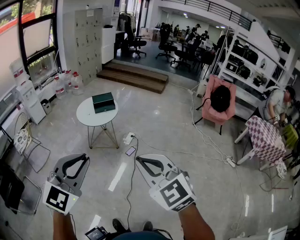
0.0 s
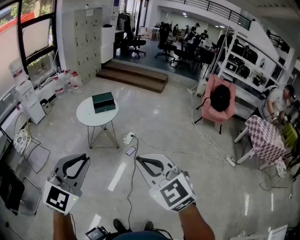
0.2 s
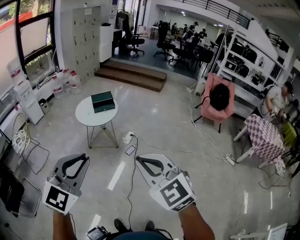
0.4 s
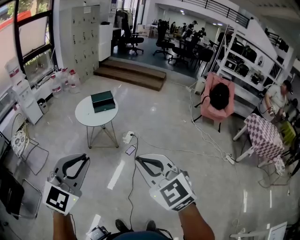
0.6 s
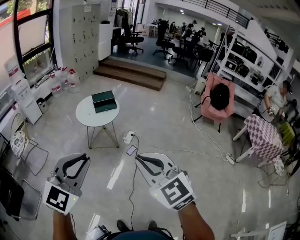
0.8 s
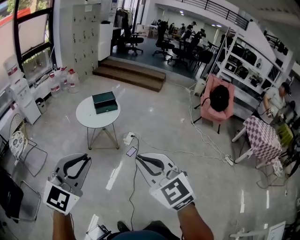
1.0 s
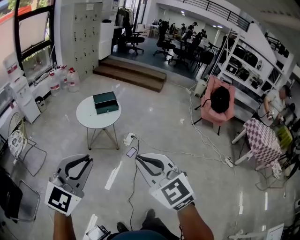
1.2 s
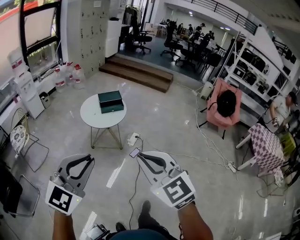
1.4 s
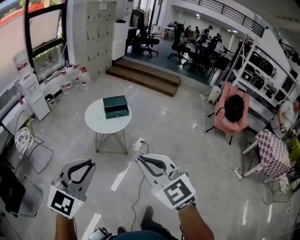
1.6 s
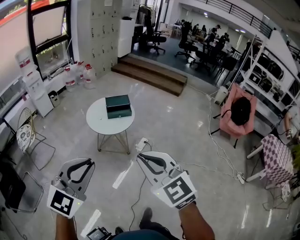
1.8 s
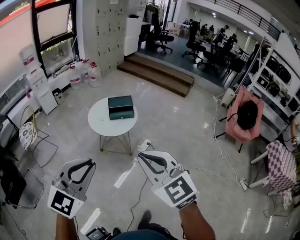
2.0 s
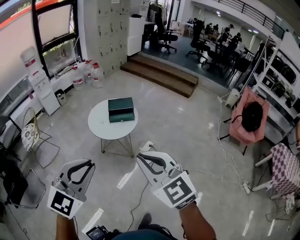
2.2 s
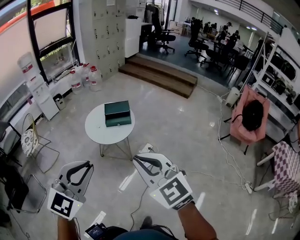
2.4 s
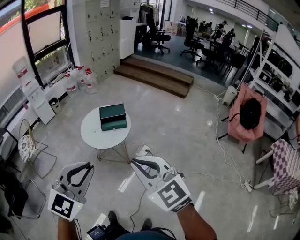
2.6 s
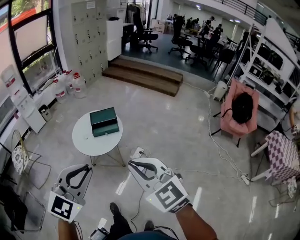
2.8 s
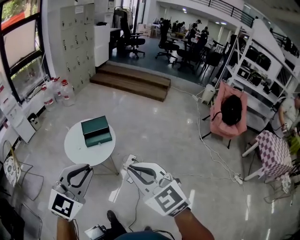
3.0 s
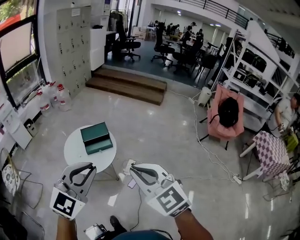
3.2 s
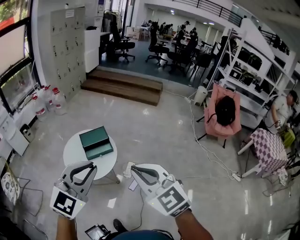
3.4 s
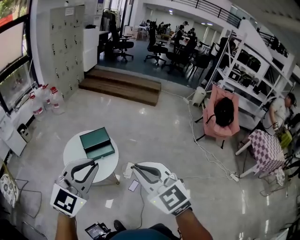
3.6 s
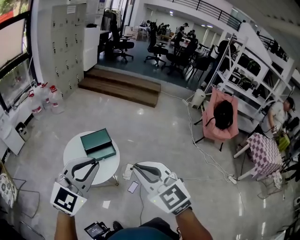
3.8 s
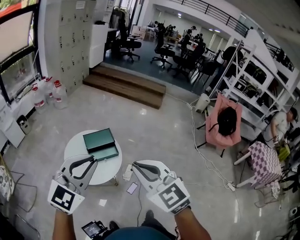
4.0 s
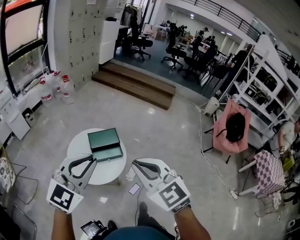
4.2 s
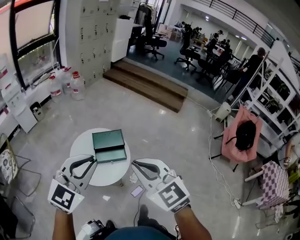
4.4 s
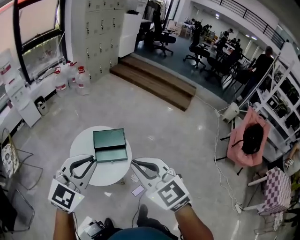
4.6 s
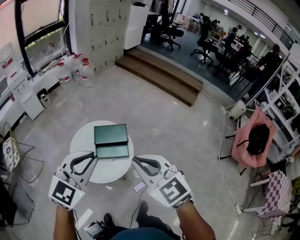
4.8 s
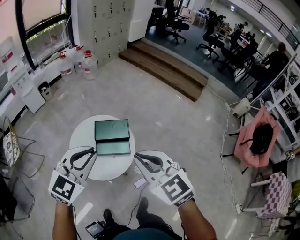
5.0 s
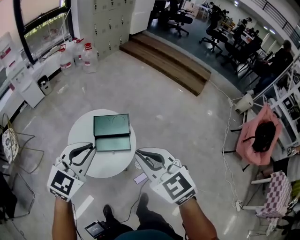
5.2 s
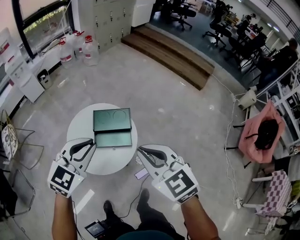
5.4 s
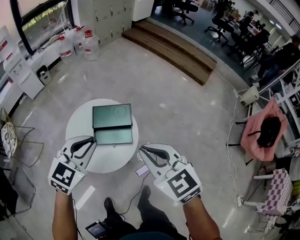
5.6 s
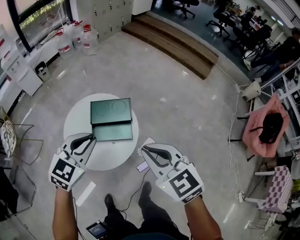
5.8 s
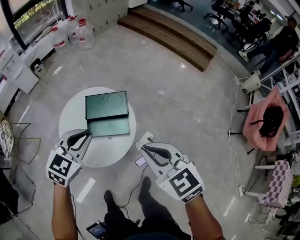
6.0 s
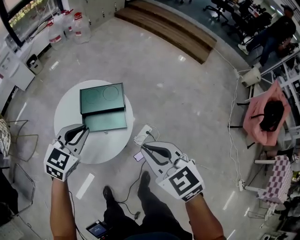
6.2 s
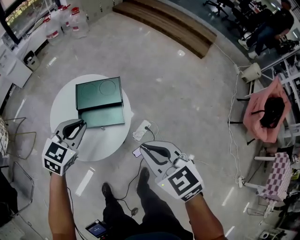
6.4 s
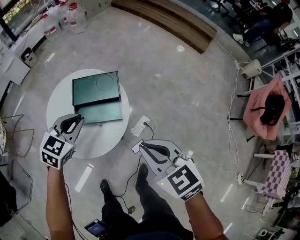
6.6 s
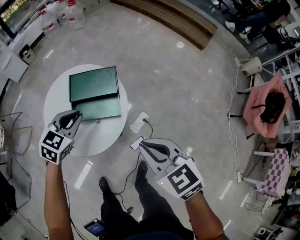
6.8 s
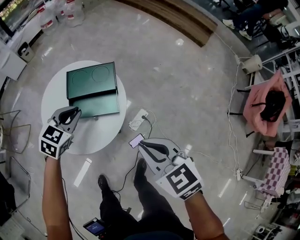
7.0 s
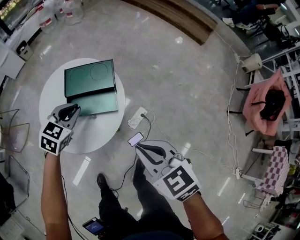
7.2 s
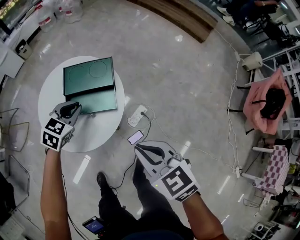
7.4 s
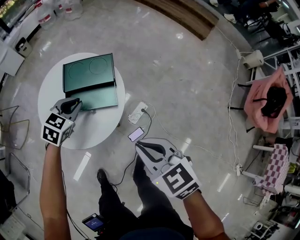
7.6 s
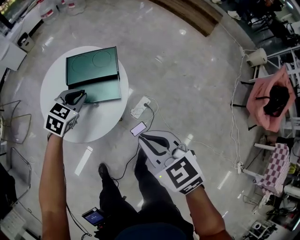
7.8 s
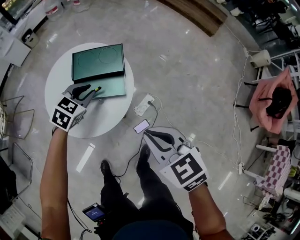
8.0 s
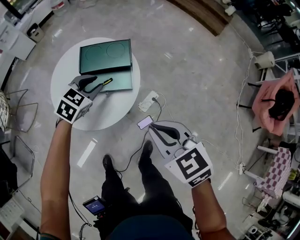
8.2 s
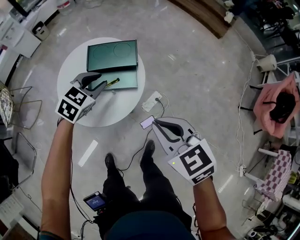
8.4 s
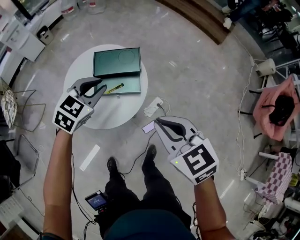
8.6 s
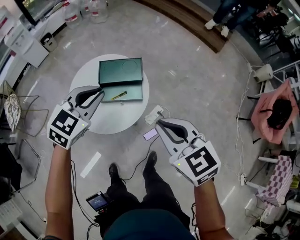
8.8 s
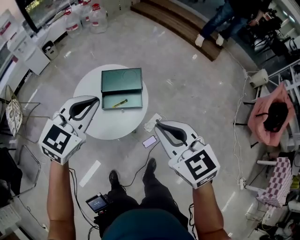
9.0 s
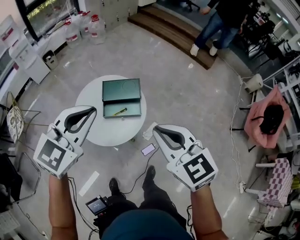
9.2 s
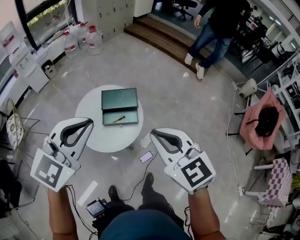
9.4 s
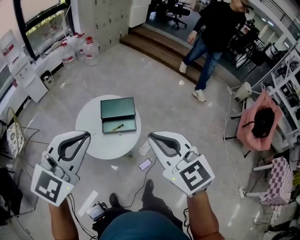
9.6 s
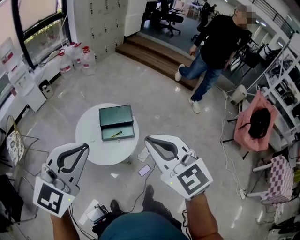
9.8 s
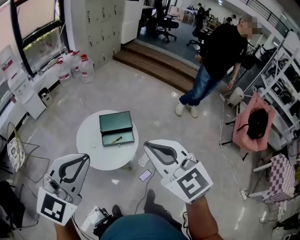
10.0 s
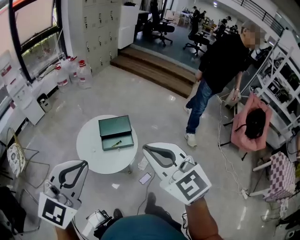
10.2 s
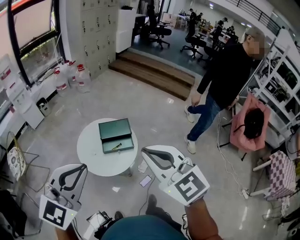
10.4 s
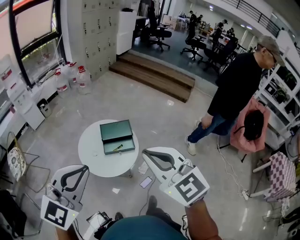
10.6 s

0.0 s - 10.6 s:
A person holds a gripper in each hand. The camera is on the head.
0.0 s - 1.6 s: The two grippers go some 30 cm forward and to the left.
1.6 s - 3.0 s: The two grippers travel together, forward and to the right, roughly 50 cm.
3.0 s - 4.6 s: The two grippers travel together, forward, approximately 50 cm.
4.6 s - 6.0 s: The two grippers go roughly 40 cm downward and forward. The left gripper turns by about 20 degrees.
6.0 s - 7.6 s: Both grippers move downward, approximately 25 cm.
7.6 s - 9.0 s: Both grippers travel together upward, approximately 30 cm. The left gripper rotates approximately 20 degrees.
9.0 s - 10.6 s: The left gripper is displaced backward and upward by some 40 cm; the right gripper heads upward and backward, covering some 35 cm.

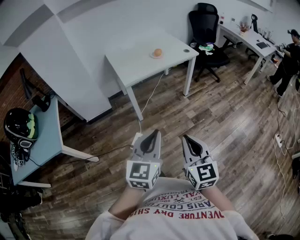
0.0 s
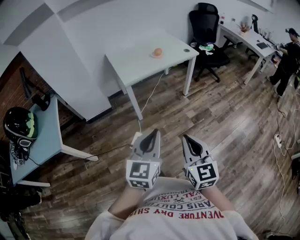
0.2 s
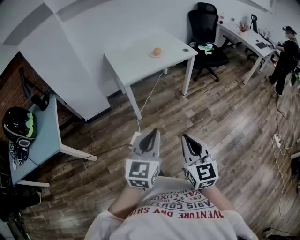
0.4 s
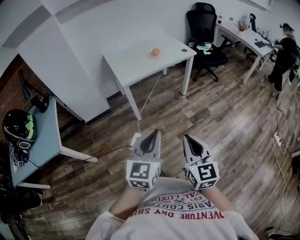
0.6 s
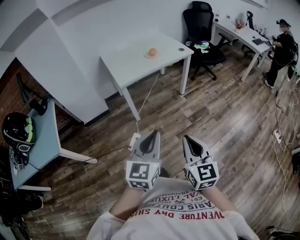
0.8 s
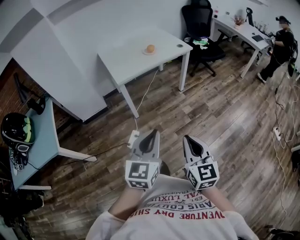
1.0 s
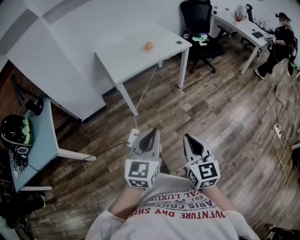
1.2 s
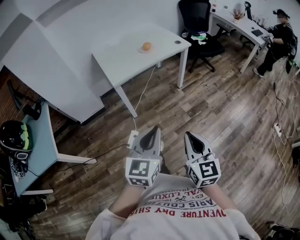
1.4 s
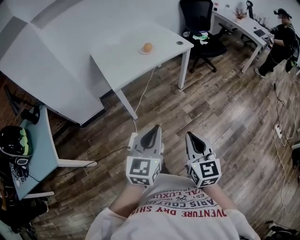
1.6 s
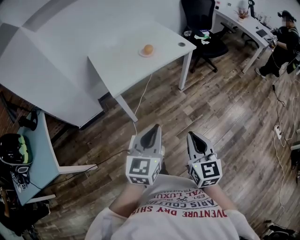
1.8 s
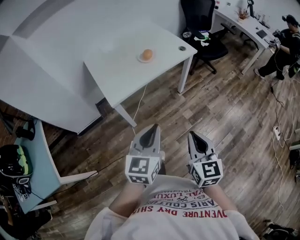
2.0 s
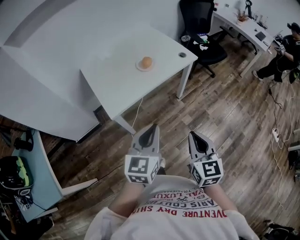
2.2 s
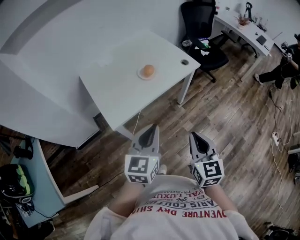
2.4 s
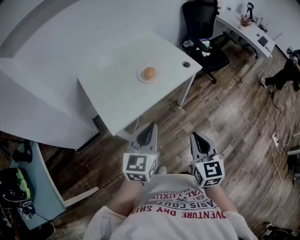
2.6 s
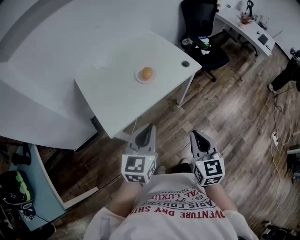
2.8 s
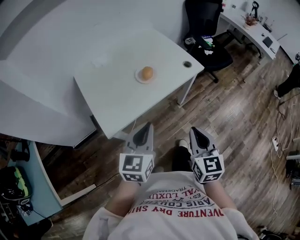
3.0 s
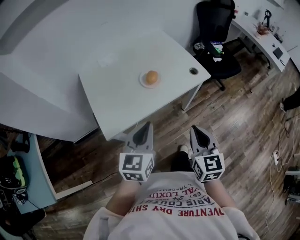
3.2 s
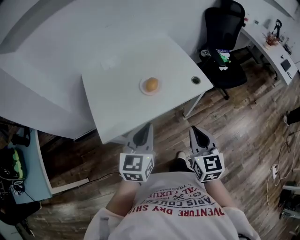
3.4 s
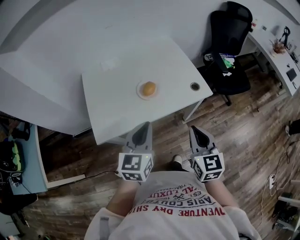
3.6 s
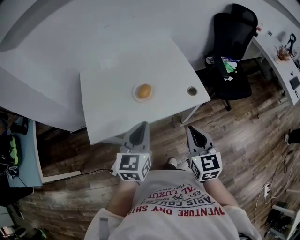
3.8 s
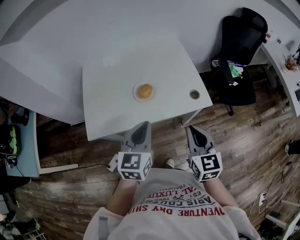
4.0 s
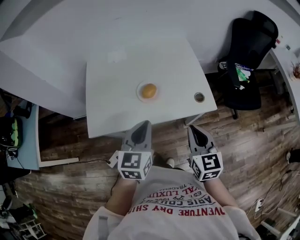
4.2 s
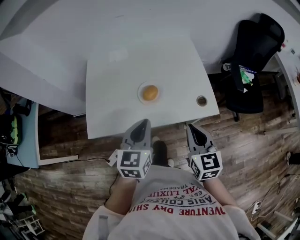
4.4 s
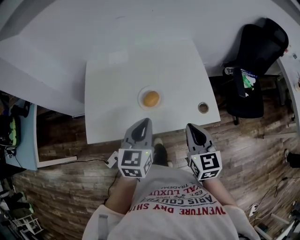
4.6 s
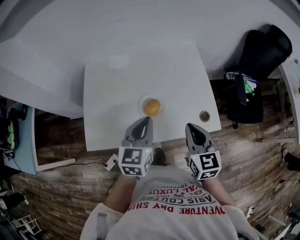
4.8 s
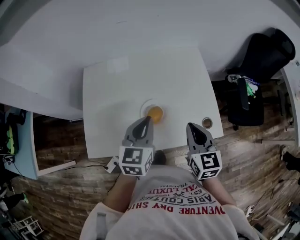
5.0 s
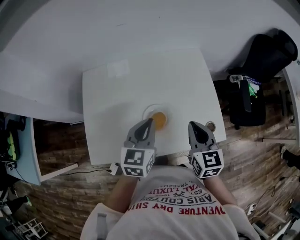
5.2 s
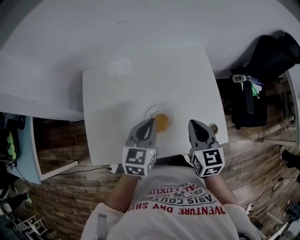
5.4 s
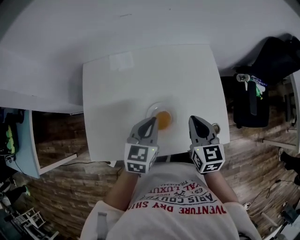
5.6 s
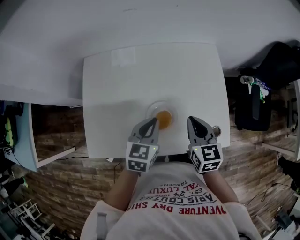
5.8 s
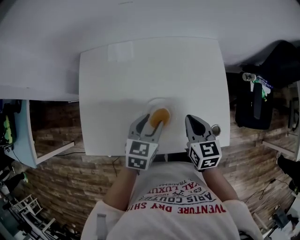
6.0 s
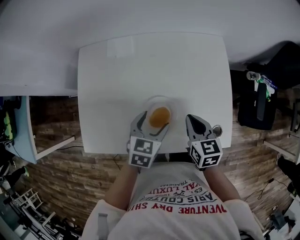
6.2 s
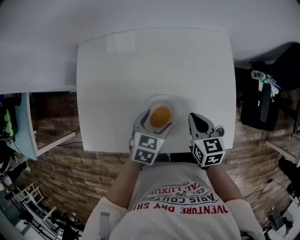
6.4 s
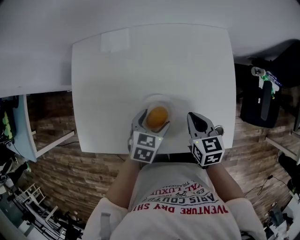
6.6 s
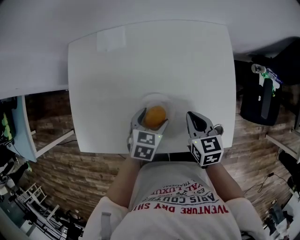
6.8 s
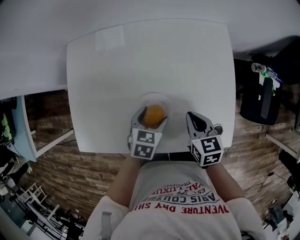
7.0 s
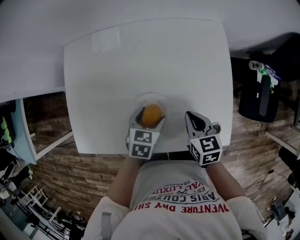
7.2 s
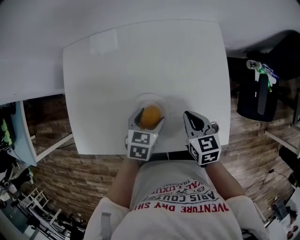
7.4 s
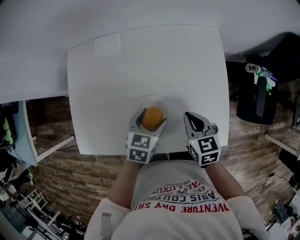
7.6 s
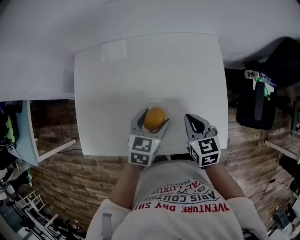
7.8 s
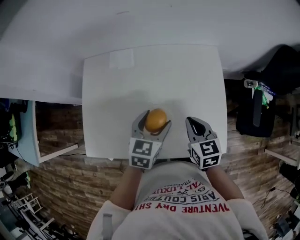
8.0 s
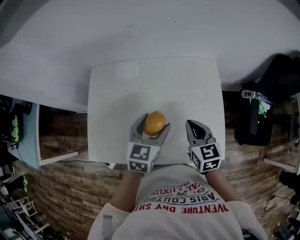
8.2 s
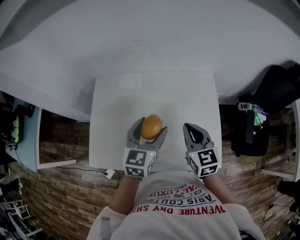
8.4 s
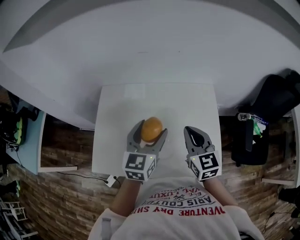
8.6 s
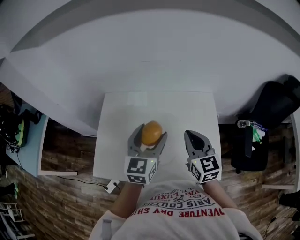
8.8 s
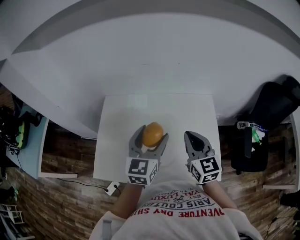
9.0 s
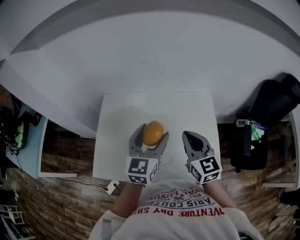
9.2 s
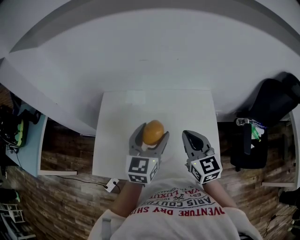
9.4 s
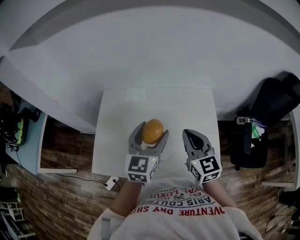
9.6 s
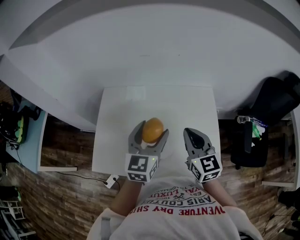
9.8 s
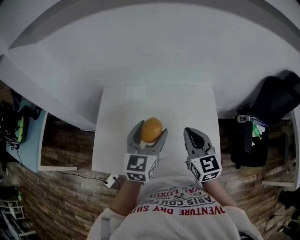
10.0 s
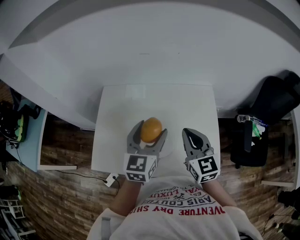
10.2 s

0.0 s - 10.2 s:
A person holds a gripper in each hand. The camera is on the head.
0.0 s - 1.4 s: The grippers both shift forward by about 5 cm.
1.4 s - 3.0 s: Both grippers are carried forward, about 40 cm.
3.0 s - 4.4 s: The left gripper ends up about 25 cm from where it was, and turns by about 30 degrees. Meanwhile the right gripper shifts by about 30 cm, and turns by roughly 30 degrees.
4.4 s - 5.8 s: The left gripper heads forward and downward, covering some 20 cm, while the right gripper goes about 25 cm forward.
5.8 s - 7.2 s: Both grippers travel together downward, roughly 10 cm. The left gripper opens.
7.2 s - 8.8 s: Both grippers move upward, roughly 25 cm. The right gripper rotates roughly 30 degrees. The left gripper tilts its fingers roughly 40 degrees upward.
8.8 s - 10.2 s: The grippers stay close to where they were, moving slightly.

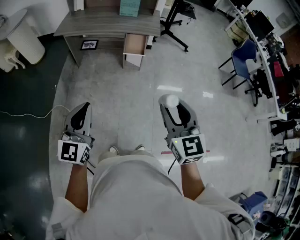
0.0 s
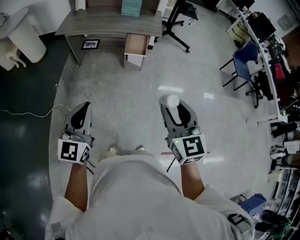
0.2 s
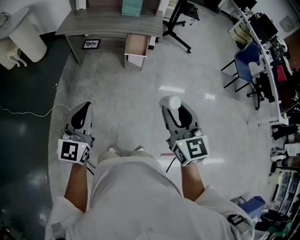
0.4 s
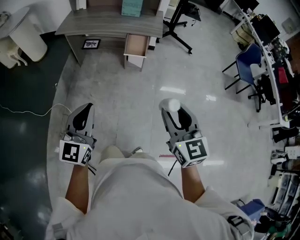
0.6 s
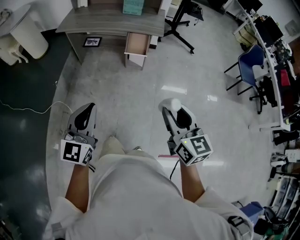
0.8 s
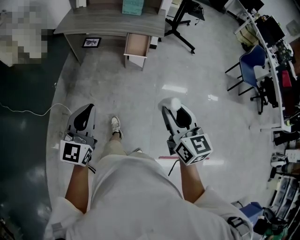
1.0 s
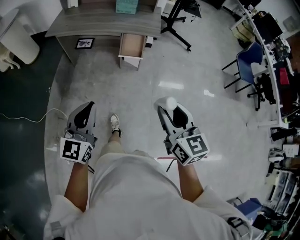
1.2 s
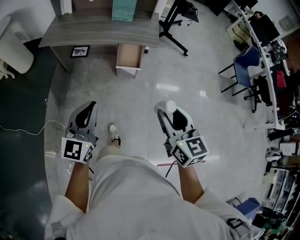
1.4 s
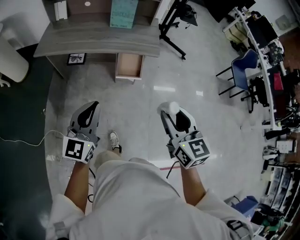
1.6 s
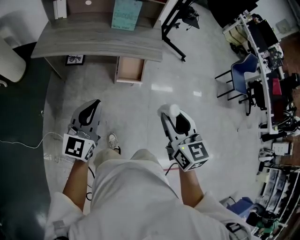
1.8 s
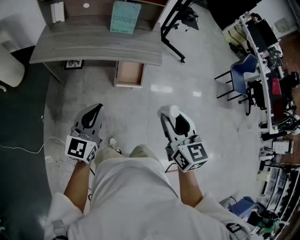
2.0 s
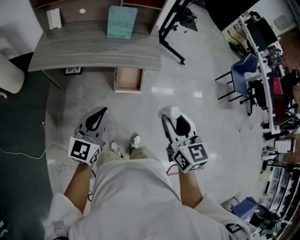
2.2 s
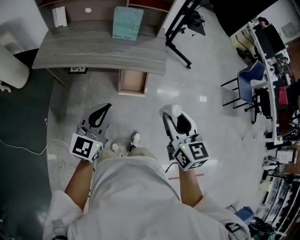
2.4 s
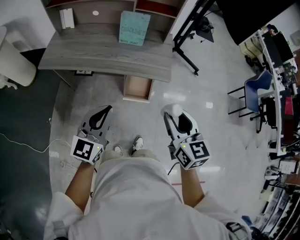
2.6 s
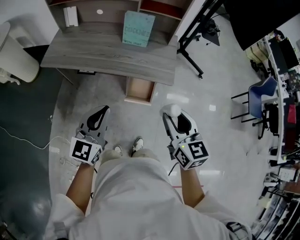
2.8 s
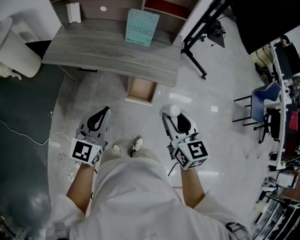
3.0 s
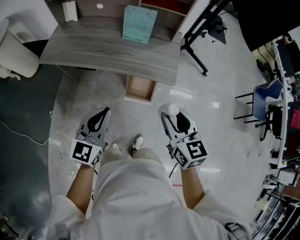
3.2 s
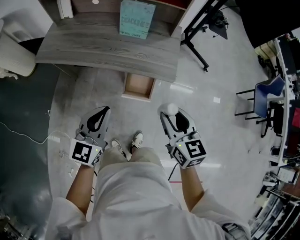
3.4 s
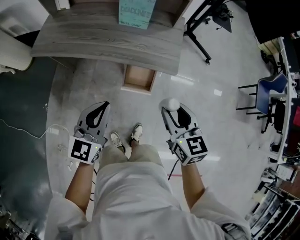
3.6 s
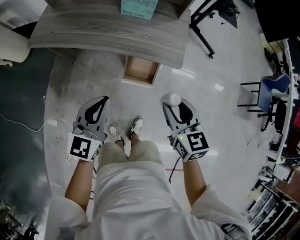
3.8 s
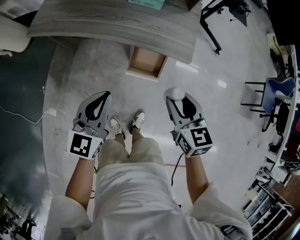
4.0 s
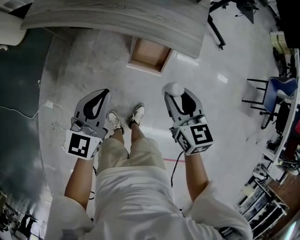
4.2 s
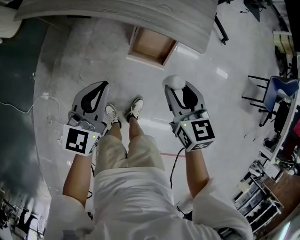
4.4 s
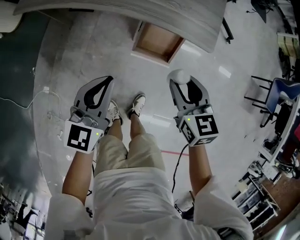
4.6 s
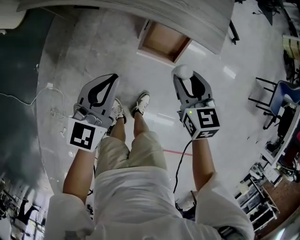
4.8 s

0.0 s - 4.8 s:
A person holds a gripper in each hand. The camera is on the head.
0.0 s - 1.6 s: Both grippers travel together forward, roughly 30 cm.
1.6 s - 3.2 s: The grippers both shift forward by approximately 20 cm.
3.2 s - 4.8 s: The grippers both shift downward by roughly 20 cm.
